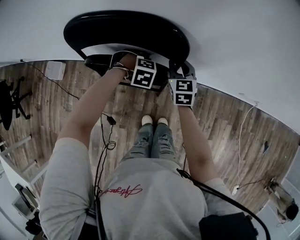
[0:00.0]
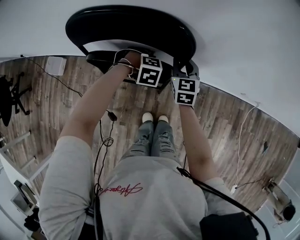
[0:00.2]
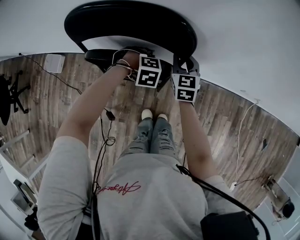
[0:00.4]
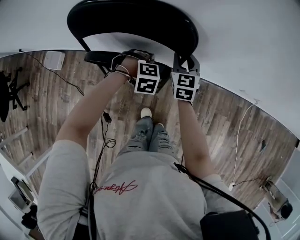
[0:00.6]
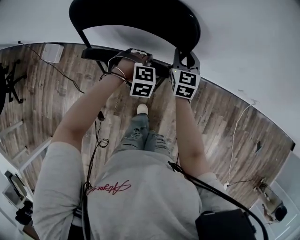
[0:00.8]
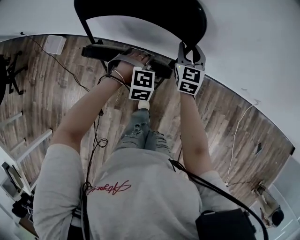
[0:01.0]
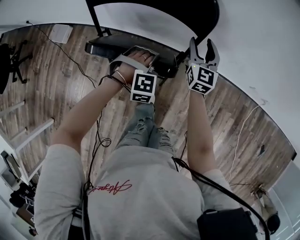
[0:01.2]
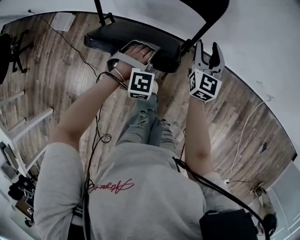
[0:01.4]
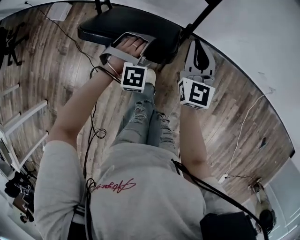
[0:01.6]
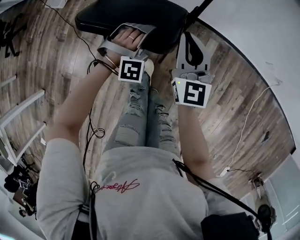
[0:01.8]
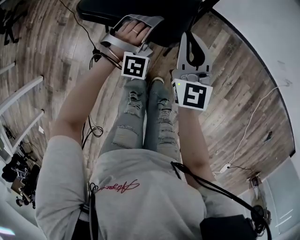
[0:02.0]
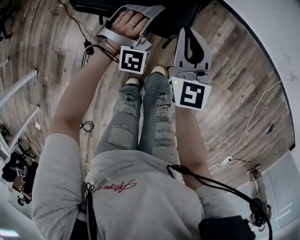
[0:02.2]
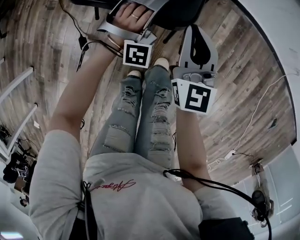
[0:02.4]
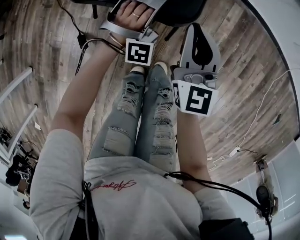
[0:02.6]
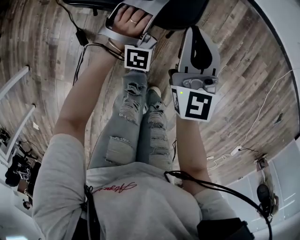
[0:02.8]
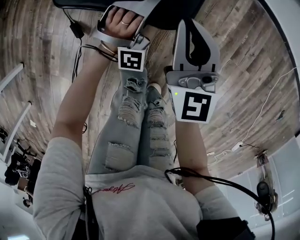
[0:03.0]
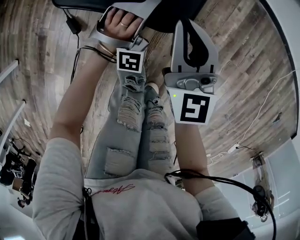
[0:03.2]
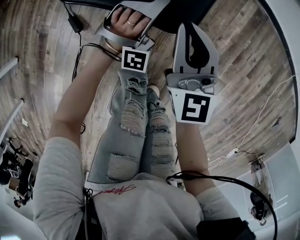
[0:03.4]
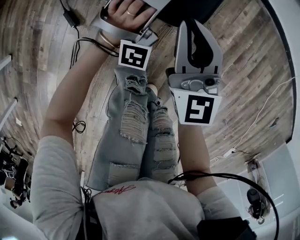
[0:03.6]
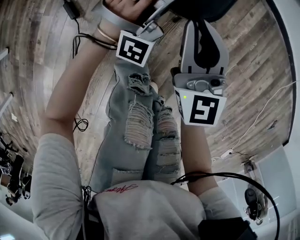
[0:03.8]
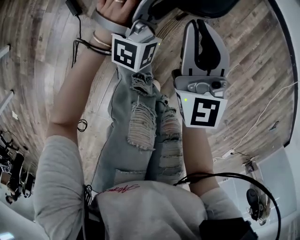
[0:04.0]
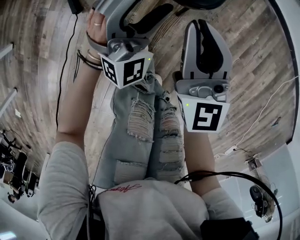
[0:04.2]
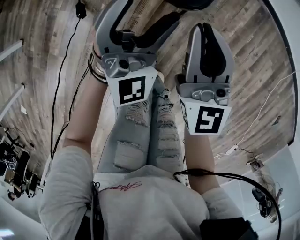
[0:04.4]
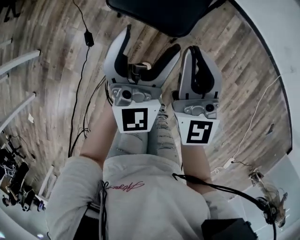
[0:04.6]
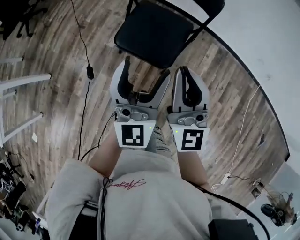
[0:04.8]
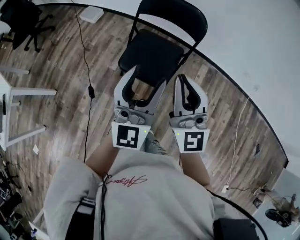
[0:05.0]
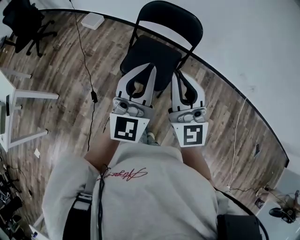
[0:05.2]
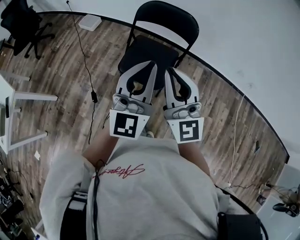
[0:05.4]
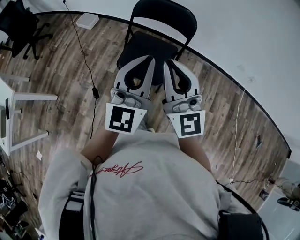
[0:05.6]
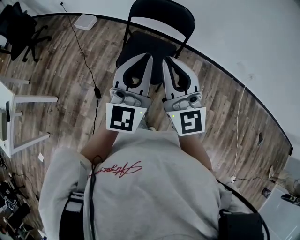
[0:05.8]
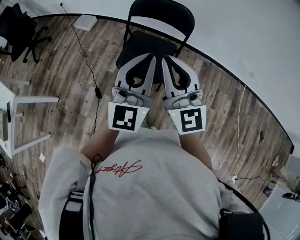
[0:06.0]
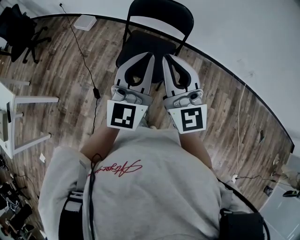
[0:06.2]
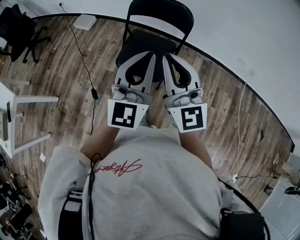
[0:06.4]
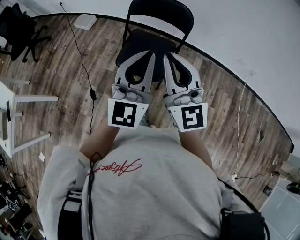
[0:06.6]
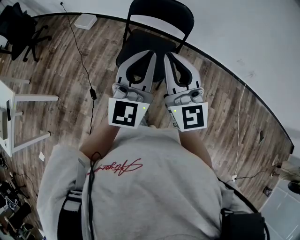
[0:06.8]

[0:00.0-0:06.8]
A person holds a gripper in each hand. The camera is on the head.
0:00.0 to 0:01.4: The left gripper changes place by approximately 15 cm, and turns by about 30 degrees. The right gripper changes place by some 10 cm, and opens.
0:01.4 to 0:02.8: The left gripper goes approximately 30 cm backward and downward, and tips its fingers upward by approximately 30 degrees. The right gripper heads backward and to the left, covering roughly 40 cm, and closes up.
0:02.8 to 0:04.0: The right gripper shifts approximately 15 cm backward, downward and to the left. The left gripper shifts roughly 10 cm backward, and changes its angle by some 20 degrees.
0:04.0 to 0:05.4: Both grippers move upward, roughly 60 cm. The right gripper changes its angle by about 30 degrees. The left gripper rotates around the line of its fingers by about 60 degrees, counterclockwise from behind, and closes its fingers.
0:05.4 to 0:06.8: The grippers move only a little.

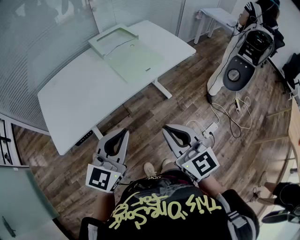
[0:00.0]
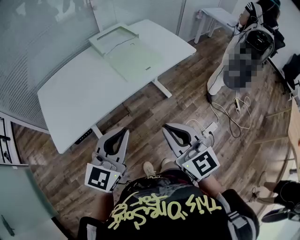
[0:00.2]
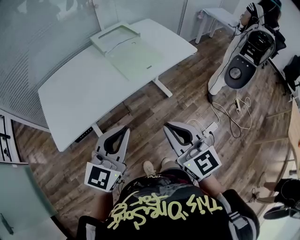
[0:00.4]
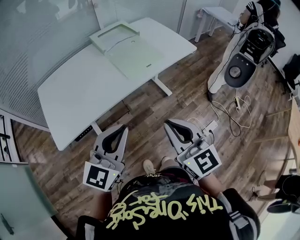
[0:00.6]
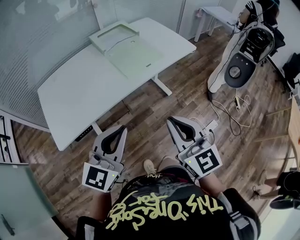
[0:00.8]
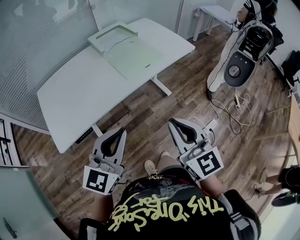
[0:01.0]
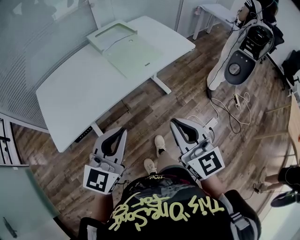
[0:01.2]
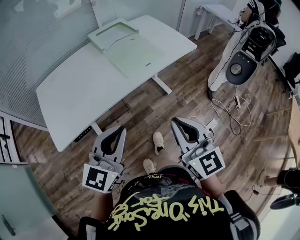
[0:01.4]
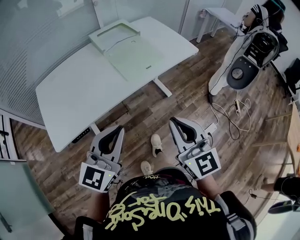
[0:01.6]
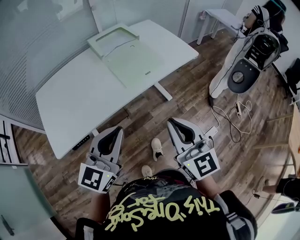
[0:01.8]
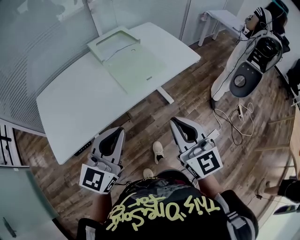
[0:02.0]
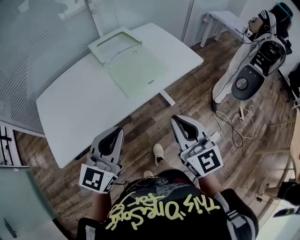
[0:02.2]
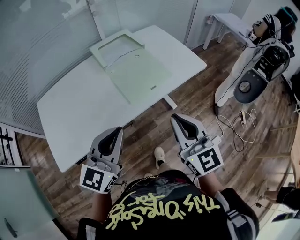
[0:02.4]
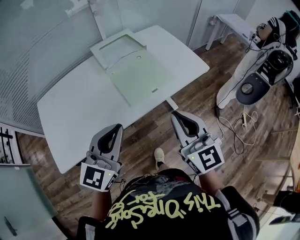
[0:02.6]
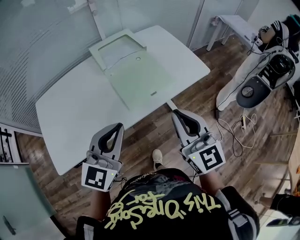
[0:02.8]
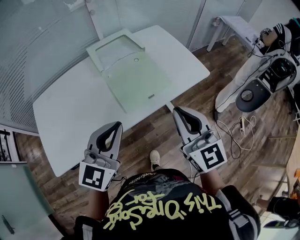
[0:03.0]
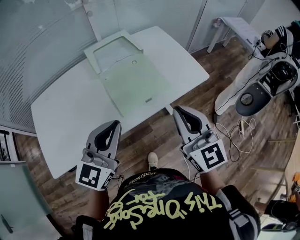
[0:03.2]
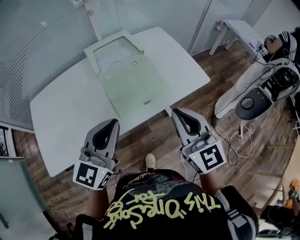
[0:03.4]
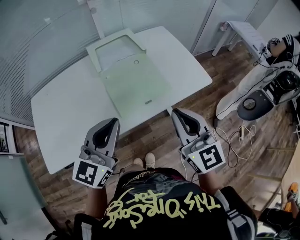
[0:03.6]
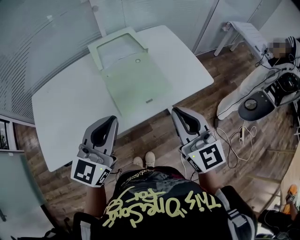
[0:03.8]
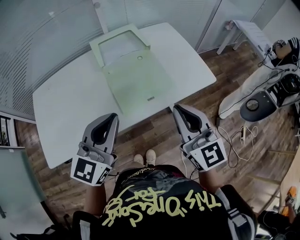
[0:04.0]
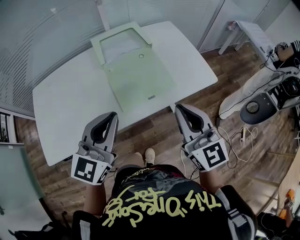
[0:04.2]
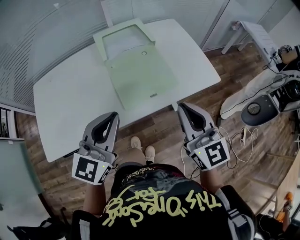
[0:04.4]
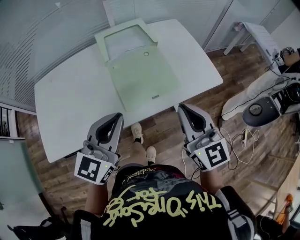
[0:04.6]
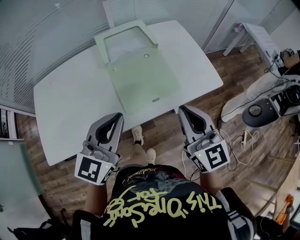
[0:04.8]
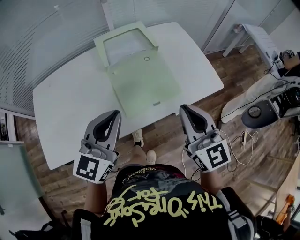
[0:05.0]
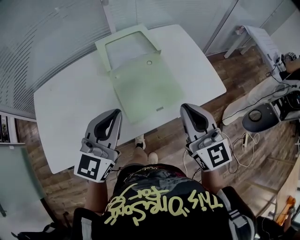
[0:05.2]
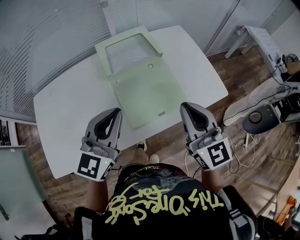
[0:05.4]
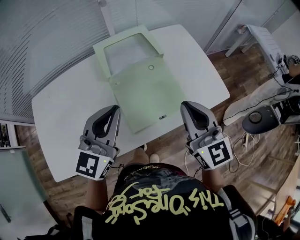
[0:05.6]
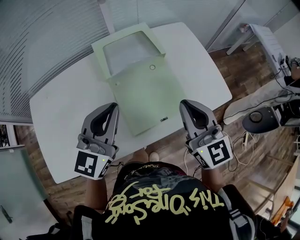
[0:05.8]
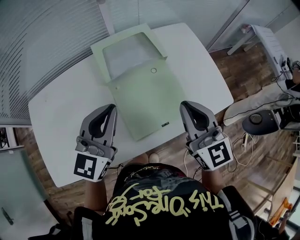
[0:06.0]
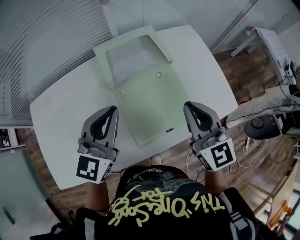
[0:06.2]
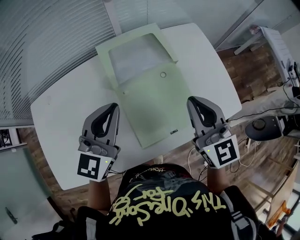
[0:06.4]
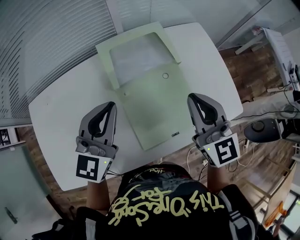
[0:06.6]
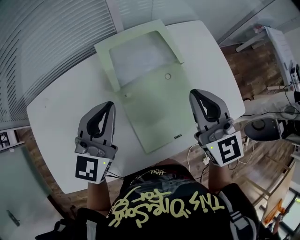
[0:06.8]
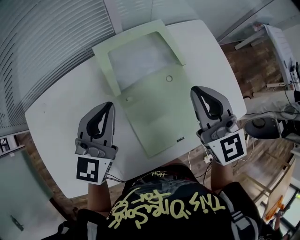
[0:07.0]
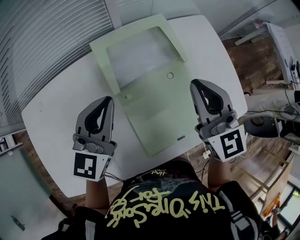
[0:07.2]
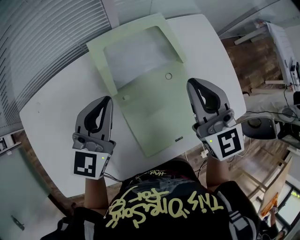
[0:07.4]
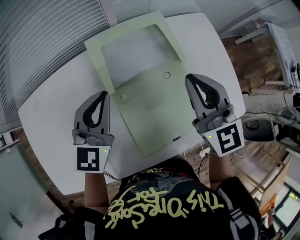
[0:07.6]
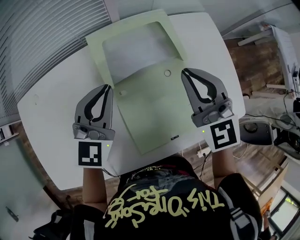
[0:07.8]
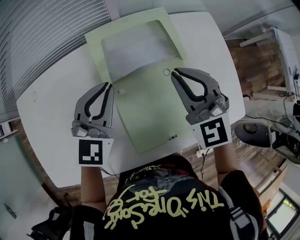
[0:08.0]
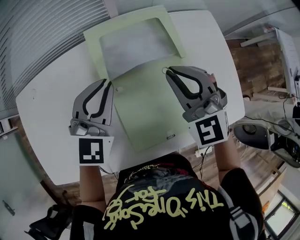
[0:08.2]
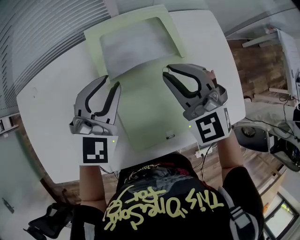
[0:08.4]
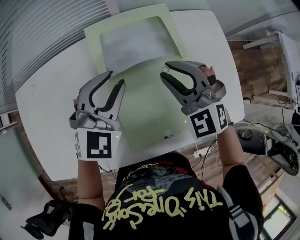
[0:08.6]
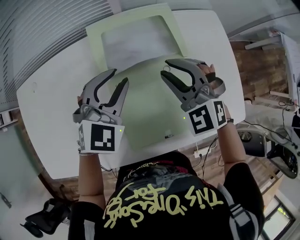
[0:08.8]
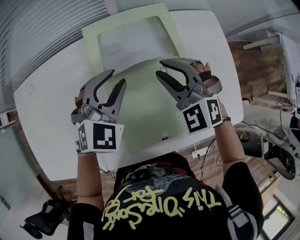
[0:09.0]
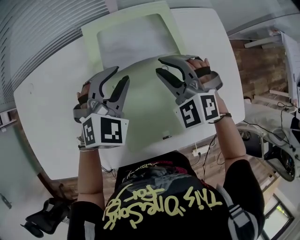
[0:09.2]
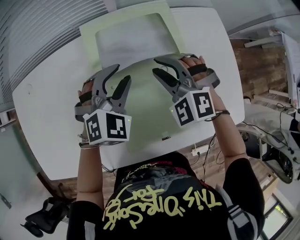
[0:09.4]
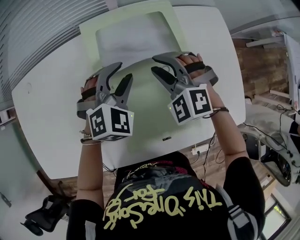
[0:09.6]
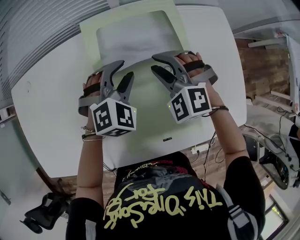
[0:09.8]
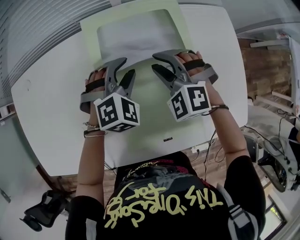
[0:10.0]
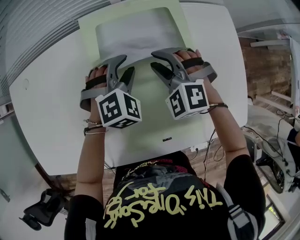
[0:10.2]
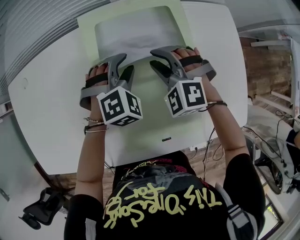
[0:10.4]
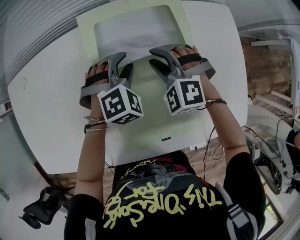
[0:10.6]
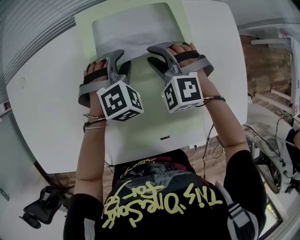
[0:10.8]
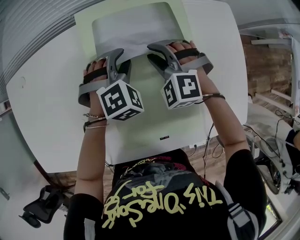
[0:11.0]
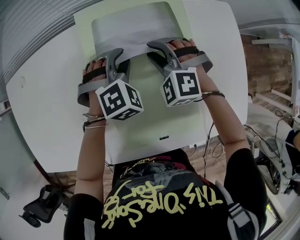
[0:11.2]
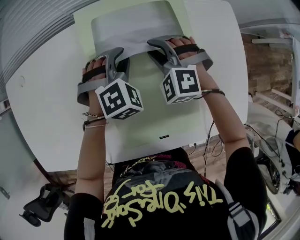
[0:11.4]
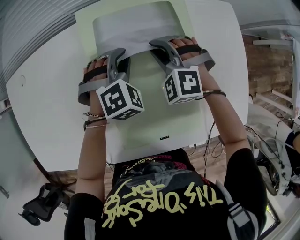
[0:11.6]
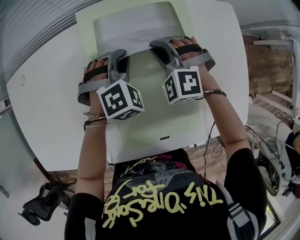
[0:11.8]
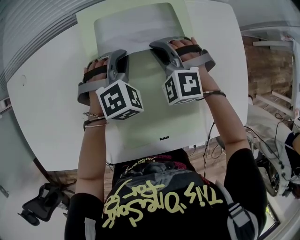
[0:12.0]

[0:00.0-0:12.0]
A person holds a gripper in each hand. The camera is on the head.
0:00.0 to 0:01.6: The grippers move only a little.
0:01.6 to 0:03.0: The two grippers go about 20 cm forward.
0:03.0 to 0:04.4: The right gripper moves roughly 5 cm.
0:04.4 to 0:06.0: The two grippers go roughly 15 cm forward.
0:06.0 to 0:07.6: The right gripper goes some 15 cm forward, while the left gripper goes some 15 cm forward, downward and to the left.
0:07.6 to 0:09.0: The left gripper travels to the right by approximately 5 cm, changes its angle by roughly 30 degrees, and opens up. The right gripper travels downward by roughly 10 cm, rotates around the line of its fingers by approximately 40 degrees, counterclockwise from behind, and opens up.
0:09.0 to 0:10.4: Both grippers move downward, some 10 cm. The left gripper swivels roughly 20 degrees.
0:10.4 to 0:12.0: The right gripper closes, while the left gripper closes.

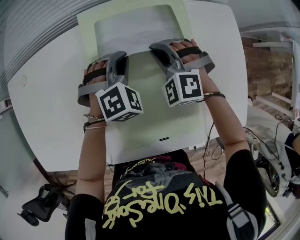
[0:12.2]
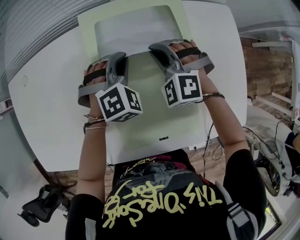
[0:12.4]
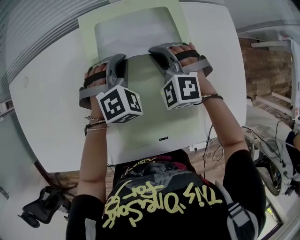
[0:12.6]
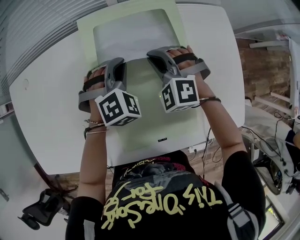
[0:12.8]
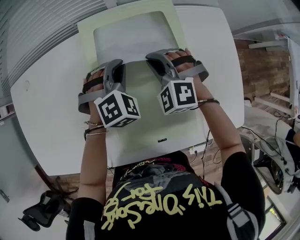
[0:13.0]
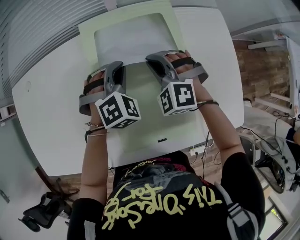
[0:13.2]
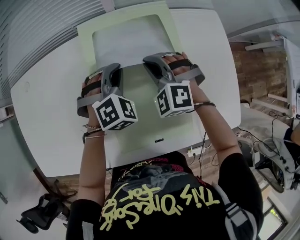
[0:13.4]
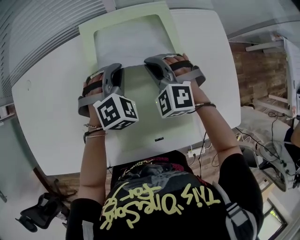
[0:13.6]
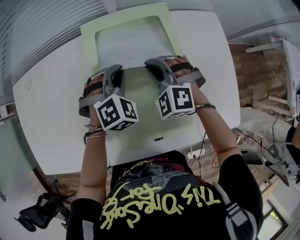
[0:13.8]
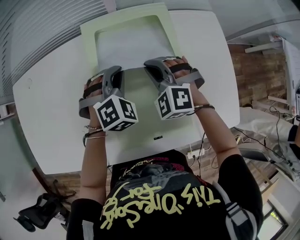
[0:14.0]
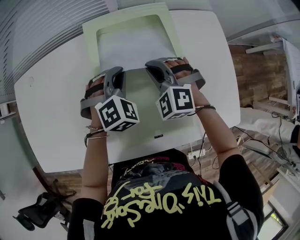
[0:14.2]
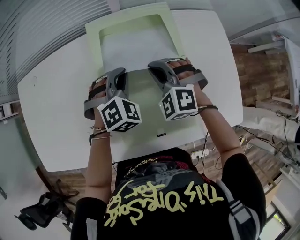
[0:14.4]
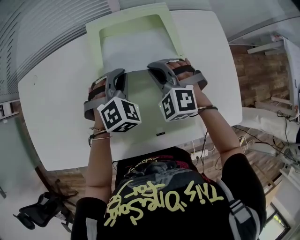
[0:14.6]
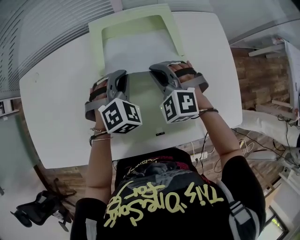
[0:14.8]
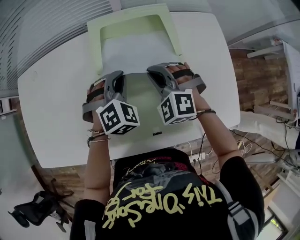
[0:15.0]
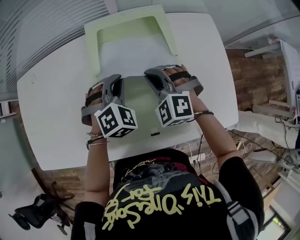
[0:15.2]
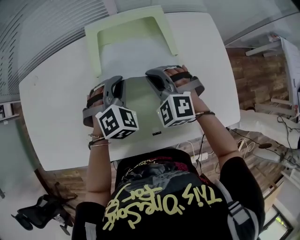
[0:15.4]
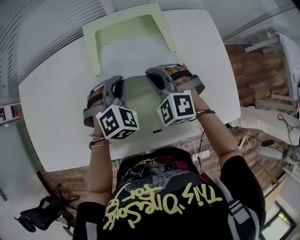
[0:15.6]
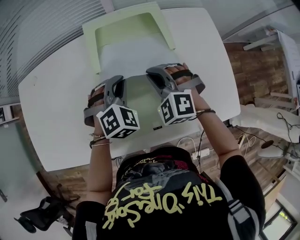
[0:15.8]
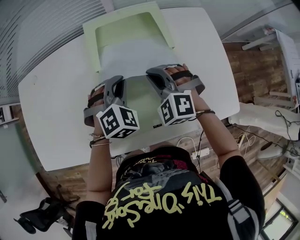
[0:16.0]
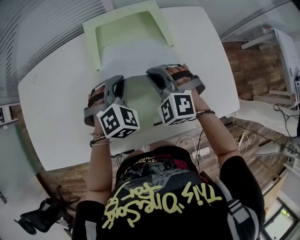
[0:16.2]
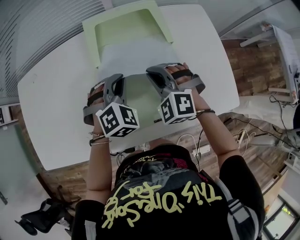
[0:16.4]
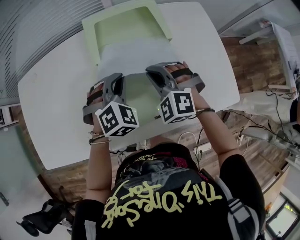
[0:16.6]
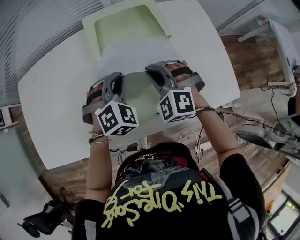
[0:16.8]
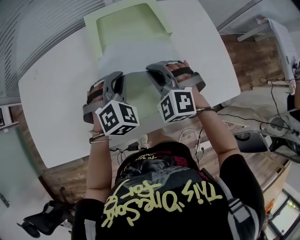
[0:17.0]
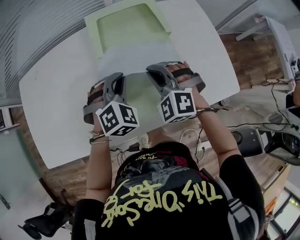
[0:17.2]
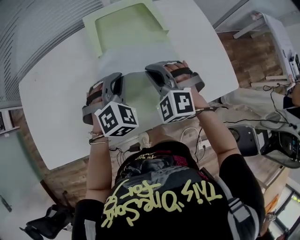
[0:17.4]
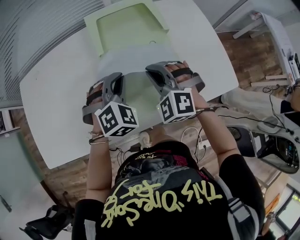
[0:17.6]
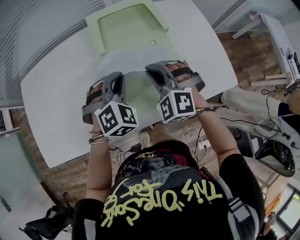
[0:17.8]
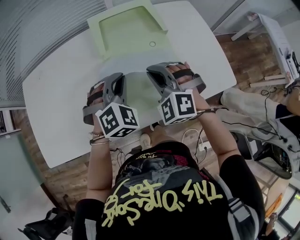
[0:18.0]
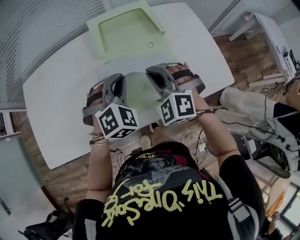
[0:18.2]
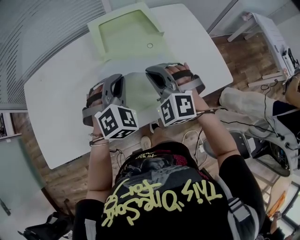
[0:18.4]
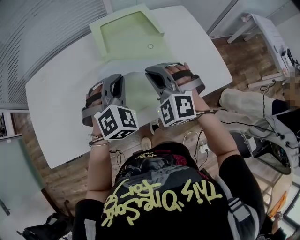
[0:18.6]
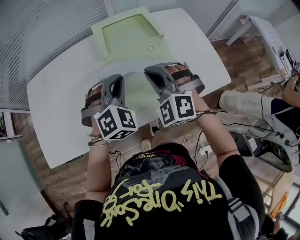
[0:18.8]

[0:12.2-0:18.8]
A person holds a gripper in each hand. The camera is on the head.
0:12.2 to 0:13.8: The grippers make only small movements.
0:13.8 to 0:15.4: Both grippers travel together backward, approximately 5 cm.
0:15.4 to 0:17.2: Both grippers travel together backward, approximately 5 cm.
0:17.2 to 0:18.8: The two grippers go some 5 cm upward.
